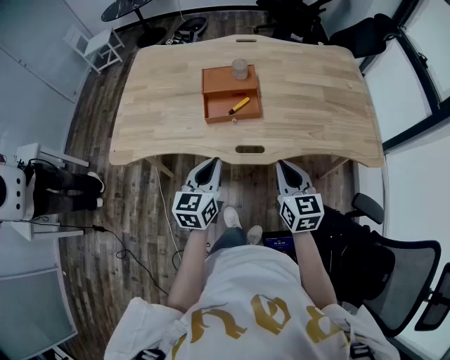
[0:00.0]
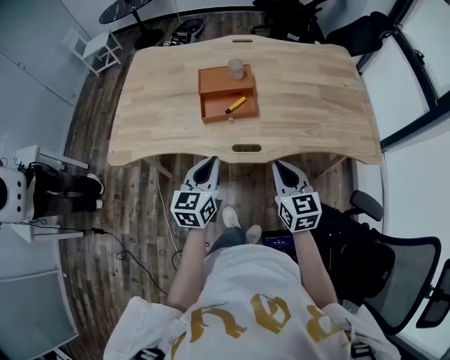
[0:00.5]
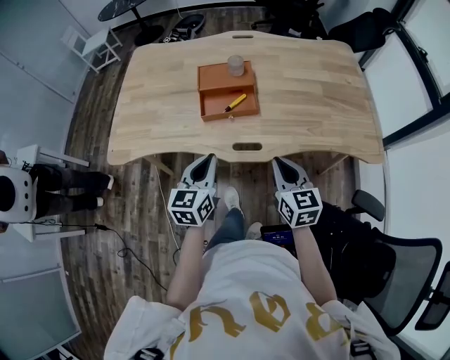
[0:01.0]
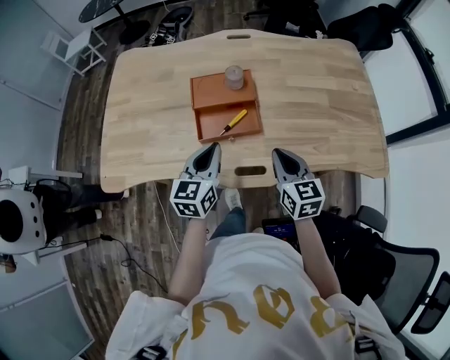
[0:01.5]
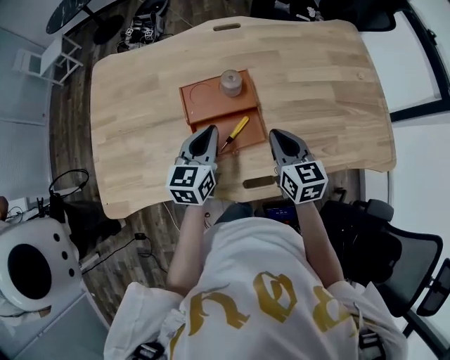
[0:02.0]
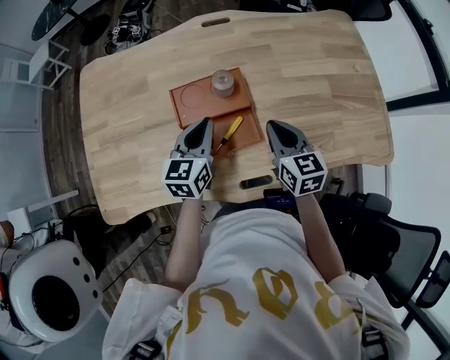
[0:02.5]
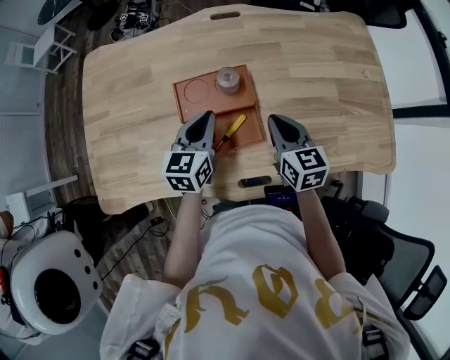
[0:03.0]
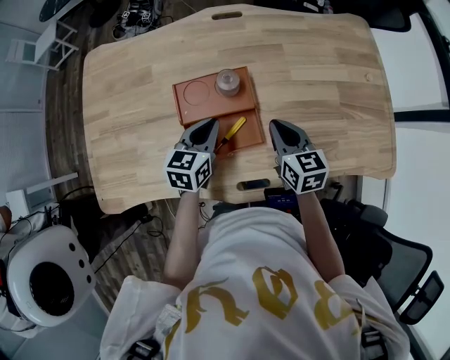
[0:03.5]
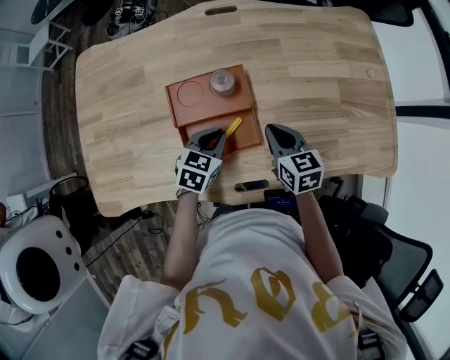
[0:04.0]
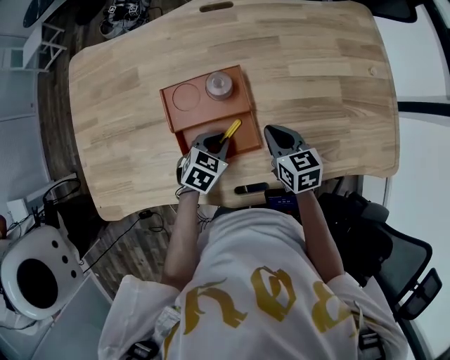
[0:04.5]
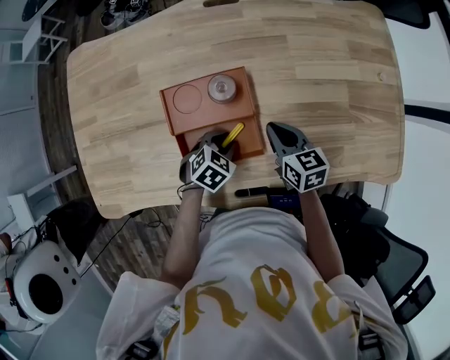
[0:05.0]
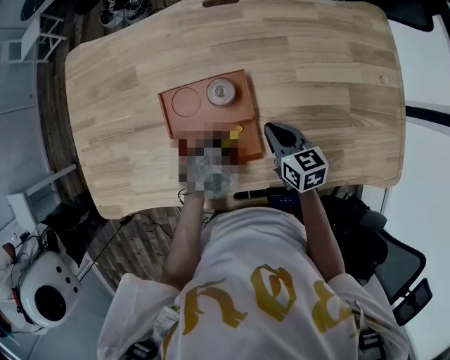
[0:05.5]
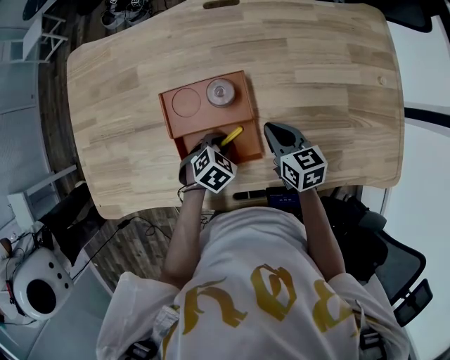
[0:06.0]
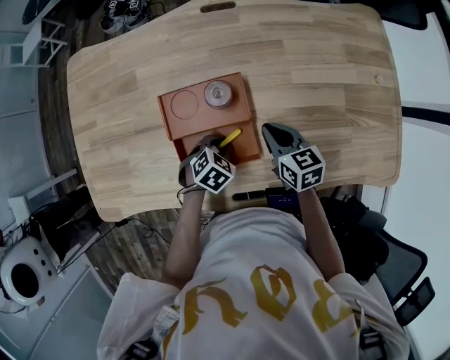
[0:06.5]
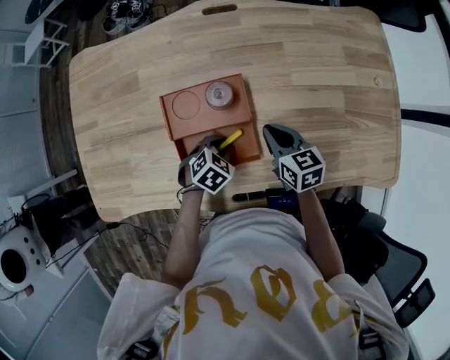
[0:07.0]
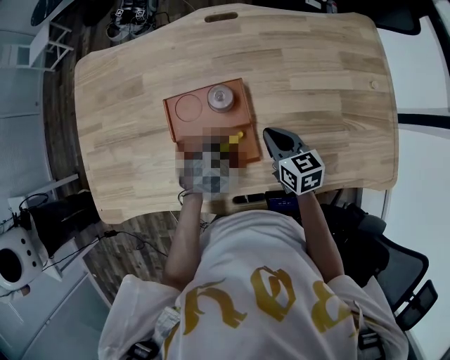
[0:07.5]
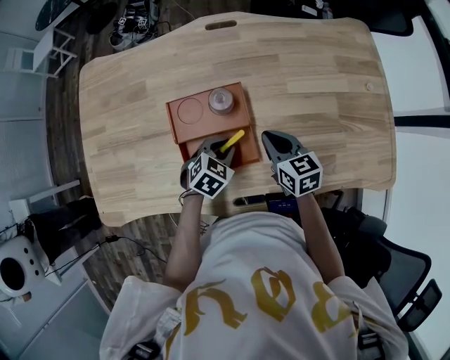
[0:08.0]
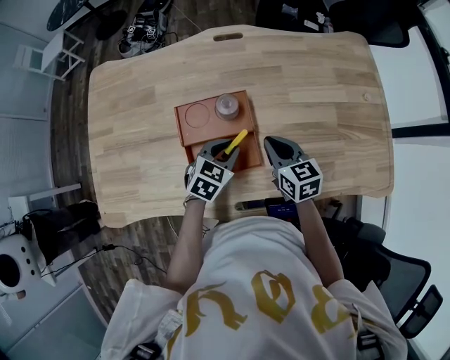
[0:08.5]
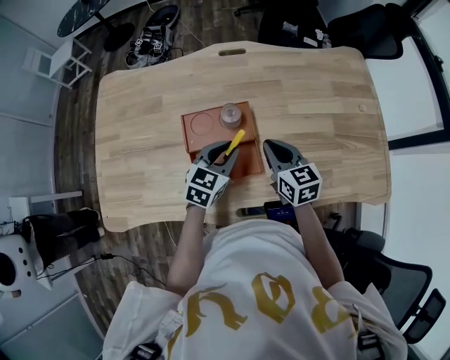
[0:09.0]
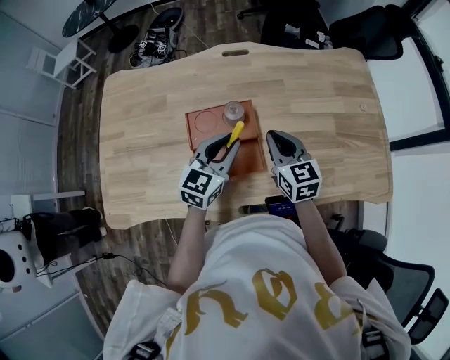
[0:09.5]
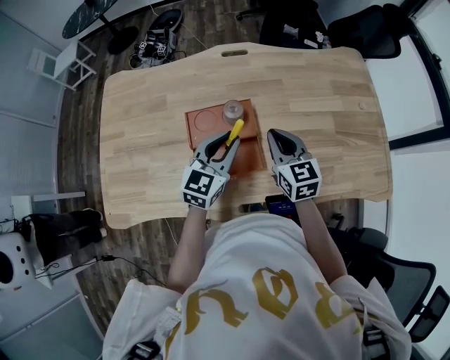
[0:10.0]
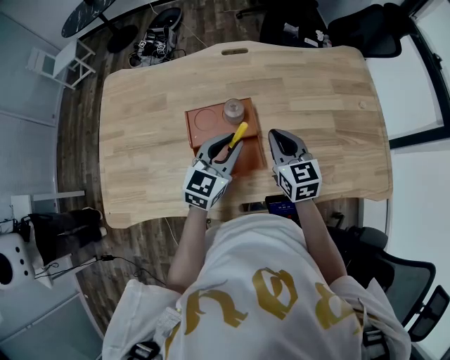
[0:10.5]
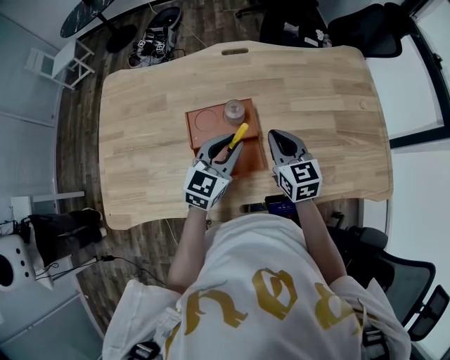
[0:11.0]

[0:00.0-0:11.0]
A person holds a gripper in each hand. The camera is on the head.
0:00.0 to 0:02.0: Both grippers move forward, about 30 cm.
0:02.0 to 0:03.5: The left gripper moves some 5 cm, while the right gripper shifts roughly 5 cm forward.
0:03.5 to 0:05.5: The left gripper is displaced downward by some 15 cm, points its fingers about 40 degrees further downward, and opens, while the right gripper moves downward, roughly 10 cm.
0:05.5 to 0:07.5: The grippers make only small movements.
0:07.5 to 0:09.0: The left gripper moves upward, roughly 15 cm, and angles its fingers upward, by about 30 degrees. Meanwhile the right gripper is displaced upward by roughly 10 cm.
0:09.0 to 0:11.0: The left gripper goes roughly 5 cm upward.

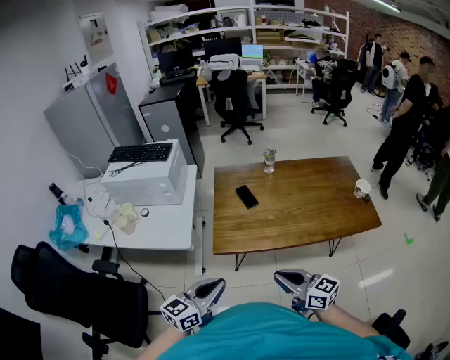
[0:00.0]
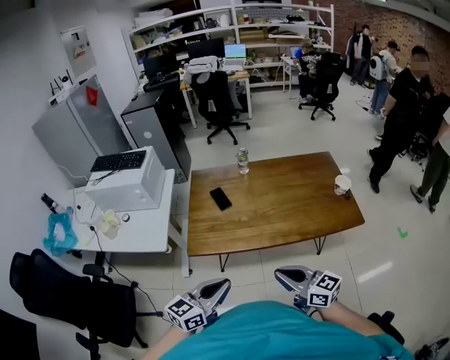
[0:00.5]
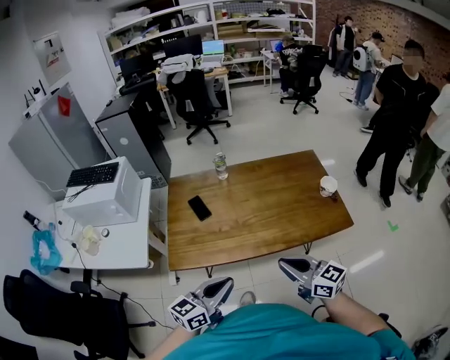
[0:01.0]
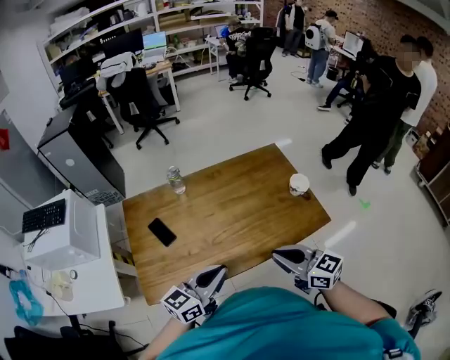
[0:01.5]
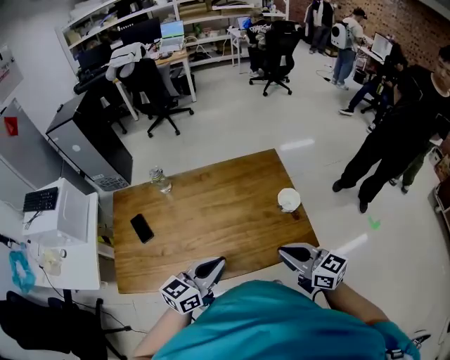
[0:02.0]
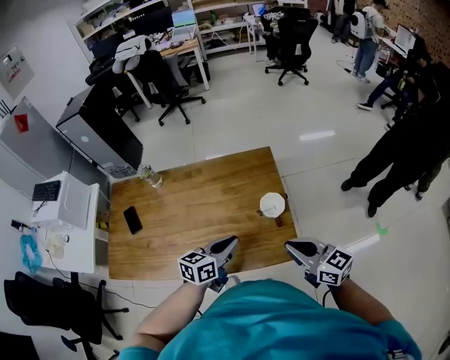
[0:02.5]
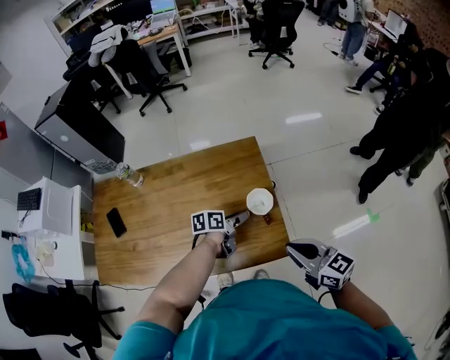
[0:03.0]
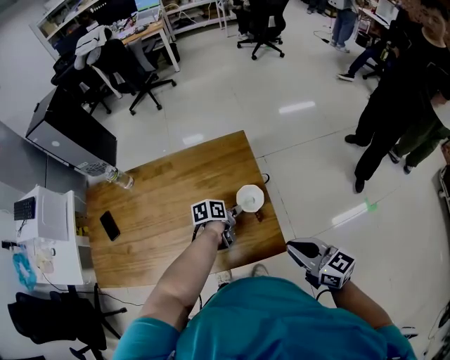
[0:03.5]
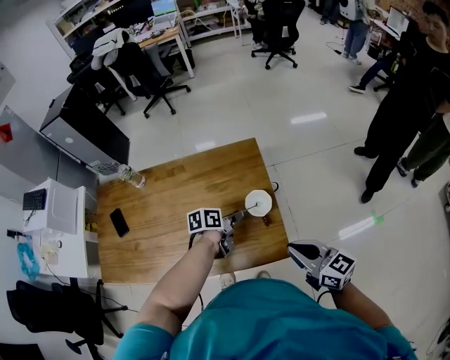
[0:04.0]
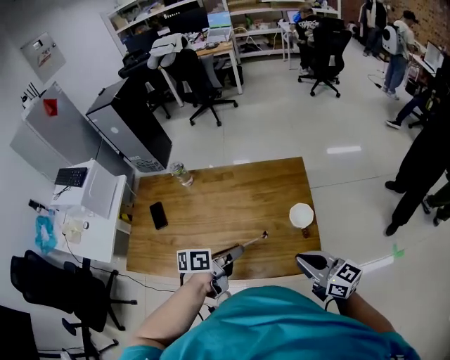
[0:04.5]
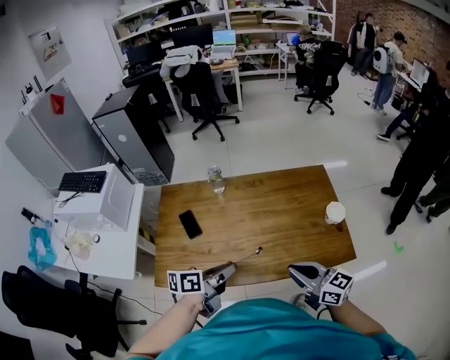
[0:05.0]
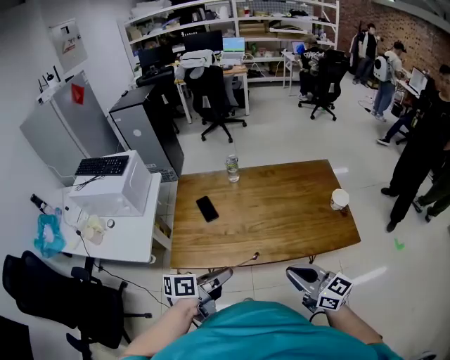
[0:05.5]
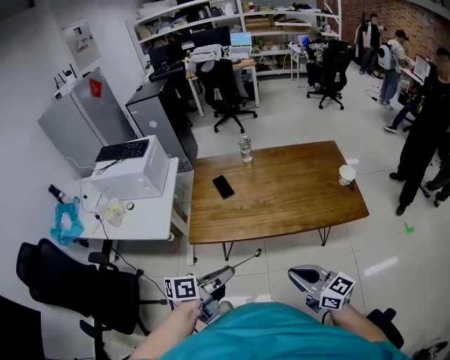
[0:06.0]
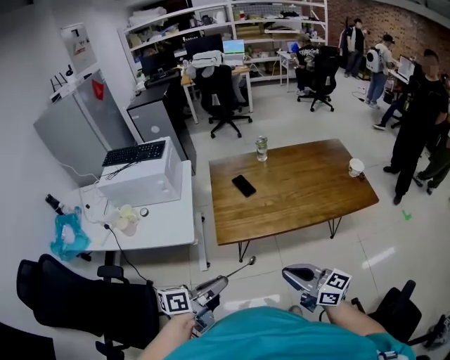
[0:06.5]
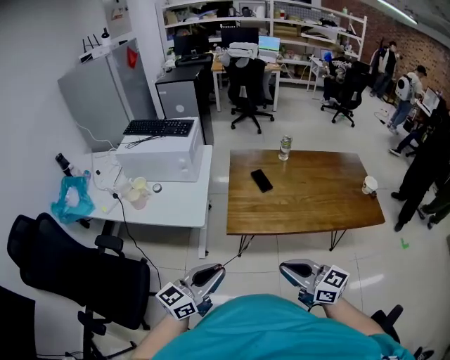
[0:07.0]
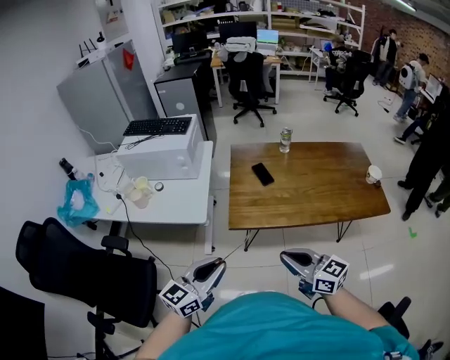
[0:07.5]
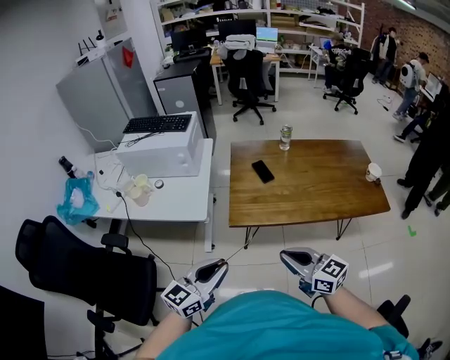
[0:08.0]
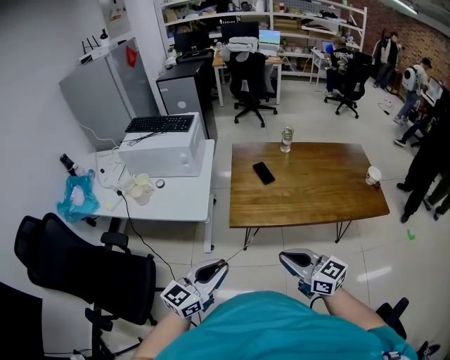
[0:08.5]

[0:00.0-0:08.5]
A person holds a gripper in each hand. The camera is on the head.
0:00.0 to 0:02.0: Both grippers are carried to the right and forward, approximately 60 cm.
0:02.0 to 0:04.0: The right gripper moves to the right and forward, some 25 cm; the left gripper shifts approximately 40 cm forward, to the right and downward, angles its fingers downward, by about 30 degrees, and opens, then closes once more.
0:04.0 to 0:06.5: The two grippers travel together, to the left and backward, approximately 90 cm. The left gripper moves upward, about 30 cm, and changes its angle by approximately 30 degrees.
0:06.5 to 0:08.5: The right gripper is displaced to the left by roughly 5 cm. The left gripper changes place by roughly 5 cm, and rotates around the line of its fingers by roughly 50 degrees, clockwise from behind.

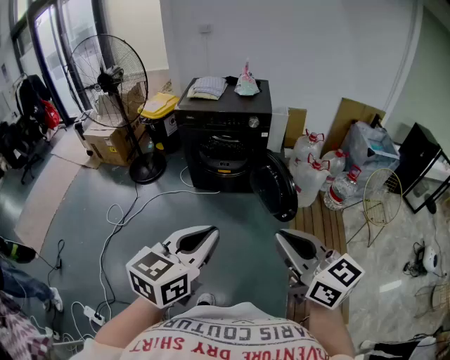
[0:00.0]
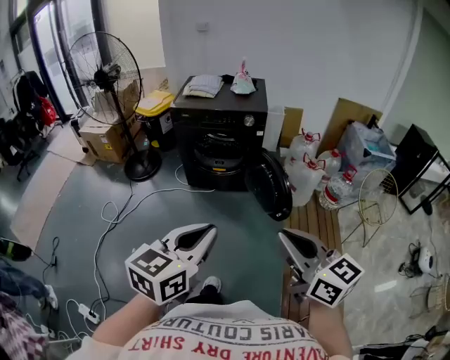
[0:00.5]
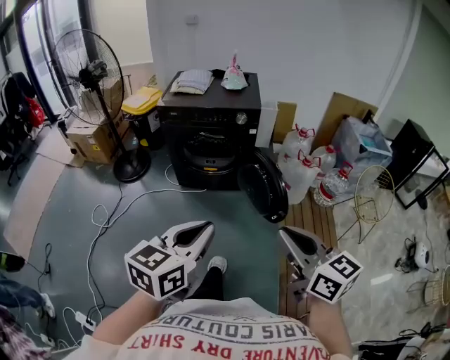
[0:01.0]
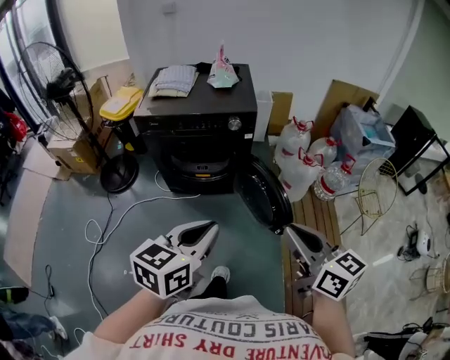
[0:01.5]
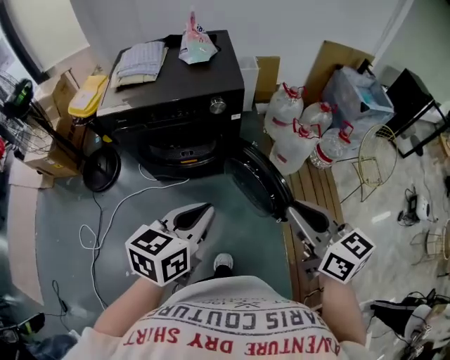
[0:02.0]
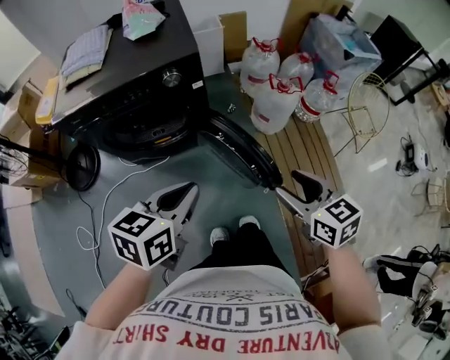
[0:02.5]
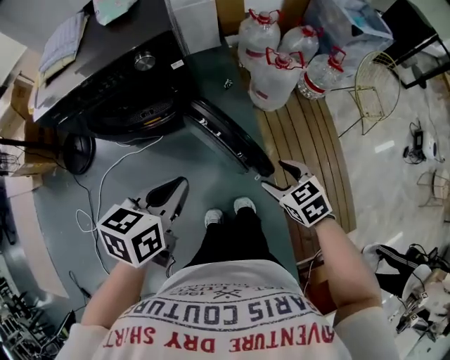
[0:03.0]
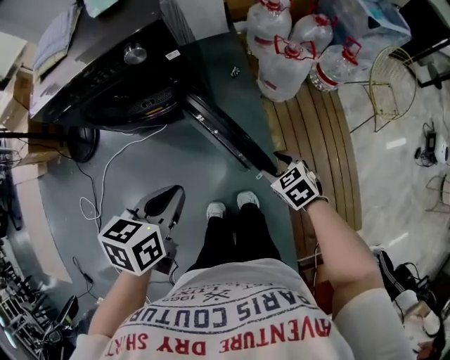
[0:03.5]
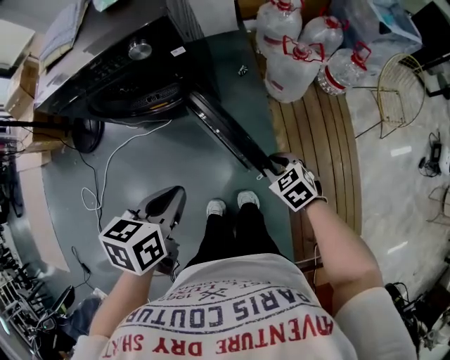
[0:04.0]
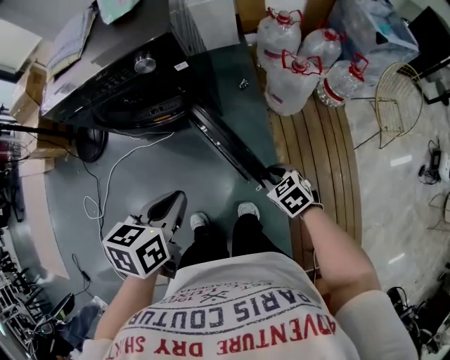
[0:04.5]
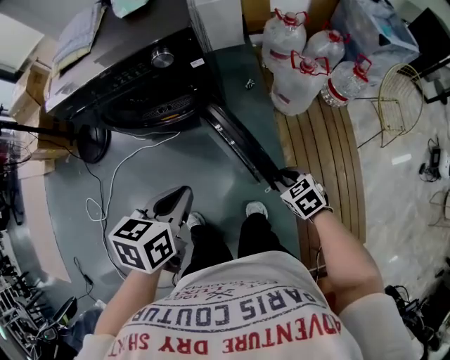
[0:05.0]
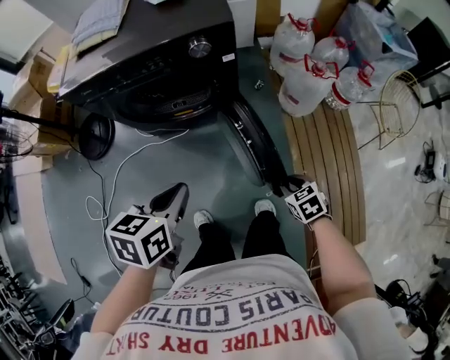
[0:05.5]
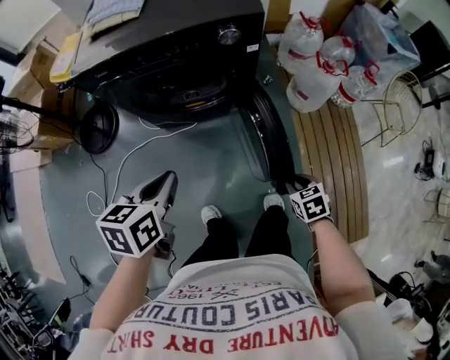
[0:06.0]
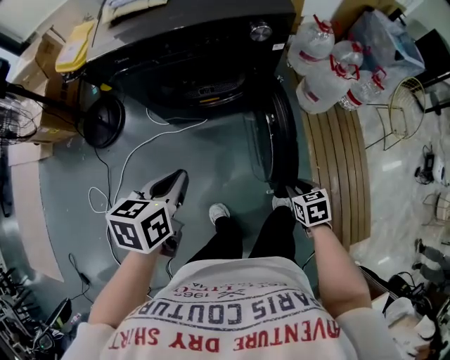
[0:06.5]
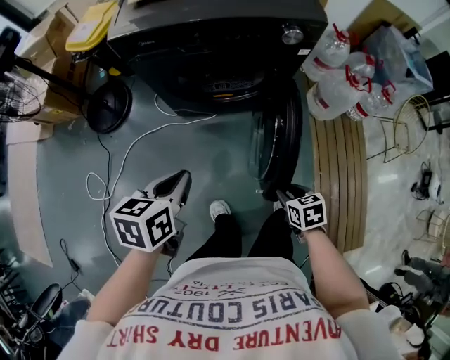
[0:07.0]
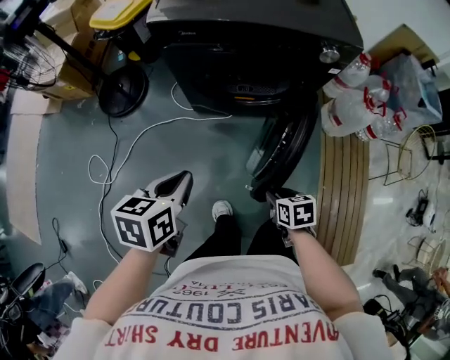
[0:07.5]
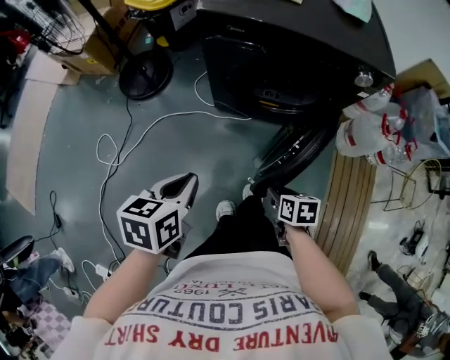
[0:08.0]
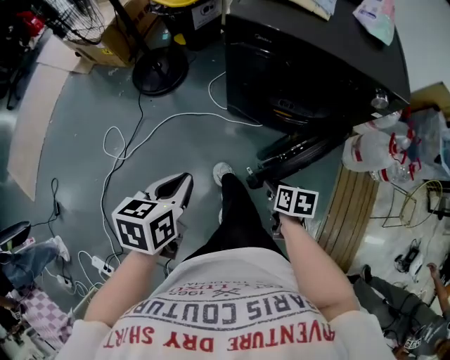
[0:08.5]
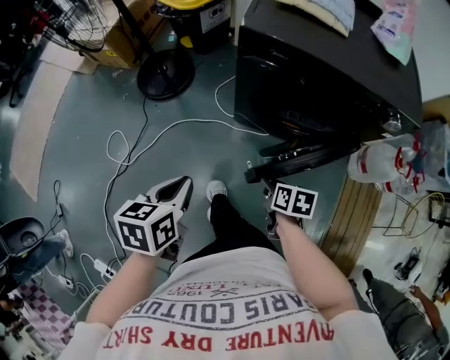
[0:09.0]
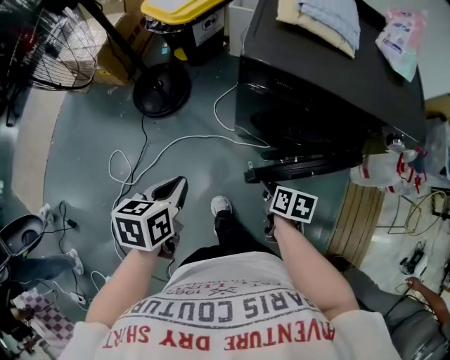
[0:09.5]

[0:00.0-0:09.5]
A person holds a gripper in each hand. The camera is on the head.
0:00.0 to 0:02.0: The two grippers go some 35 cm forward. The left gripper turns by about 20 degrees, while the right gripper changes its angle by some 20 degrees.
0:02.0 to 0:04.0: The right gripper moves downward, roughly 35 cm, tips its fingers downward by approximately 40 degrees, and opens, then closes again; the left gripper is displaced downward and to the right by about 20 cm, and changes its angle by approximately 30 degrees.
0:04.0 to 0:05.5: The right gripper is displaced to the left by some 5 cm; the left gripper shifts about 15 cm to the left.
0:05.5 to 0:07.5: The grippers both shift to the left by some 25 cm.
0:07.5 to 0:09.5: The right gripper heads forward and to the left, covering approximately 30 cm. Meanwhile the left gripper is displaced to the left and forward by some 20 cm.
